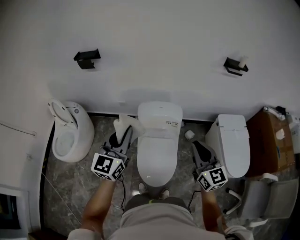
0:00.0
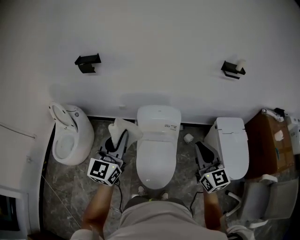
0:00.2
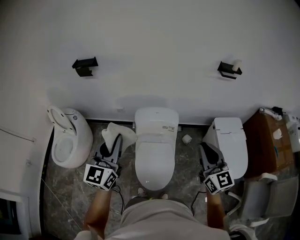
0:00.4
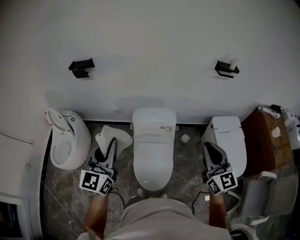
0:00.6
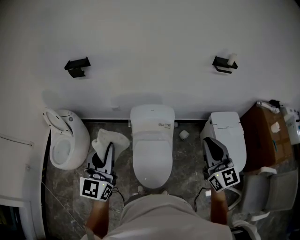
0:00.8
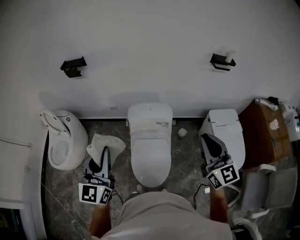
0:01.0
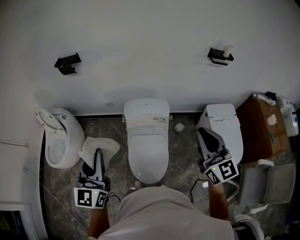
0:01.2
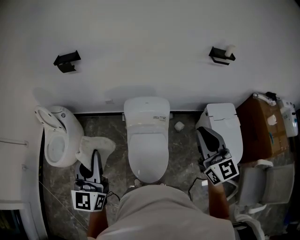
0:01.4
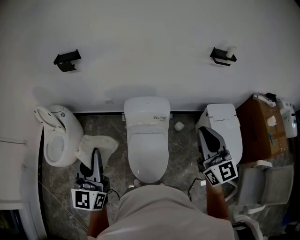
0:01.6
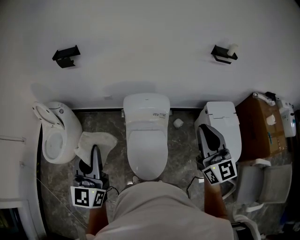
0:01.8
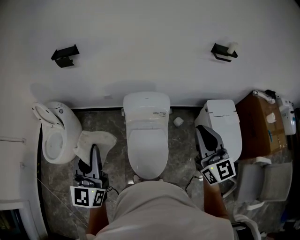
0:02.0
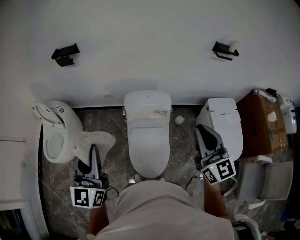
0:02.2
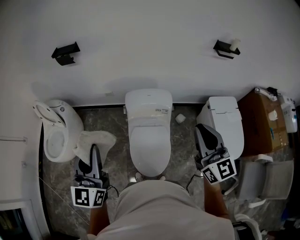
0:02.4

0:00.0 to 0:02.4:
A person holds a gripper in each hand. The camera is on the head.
0:00.0 to 0:01.2: The right gripper travels upward by about 10 cm; the left gripper heads backward, covering some 5 cm.
0:01.2 to 0:02.4: The grippers make only small movements.

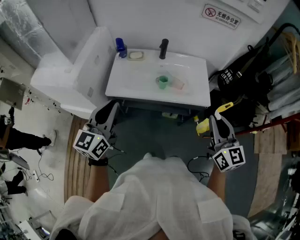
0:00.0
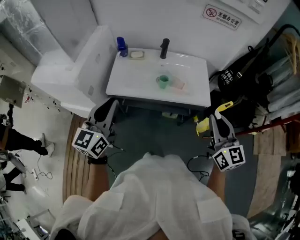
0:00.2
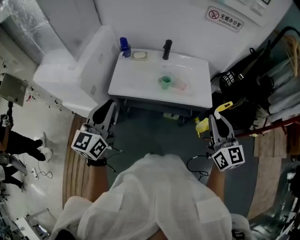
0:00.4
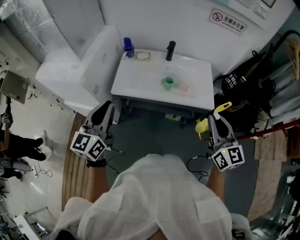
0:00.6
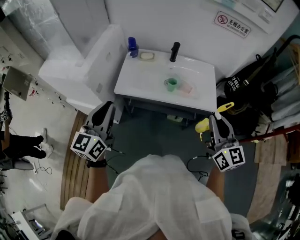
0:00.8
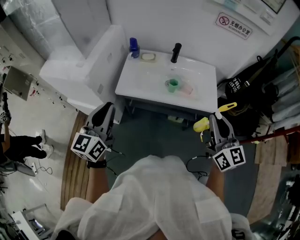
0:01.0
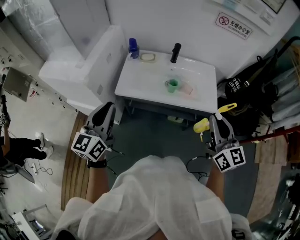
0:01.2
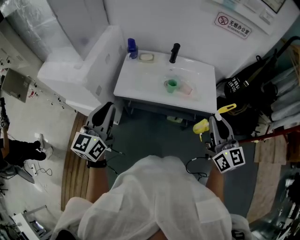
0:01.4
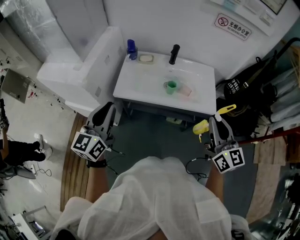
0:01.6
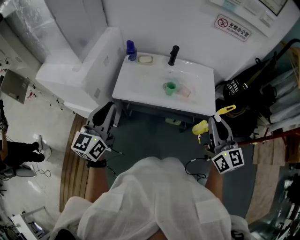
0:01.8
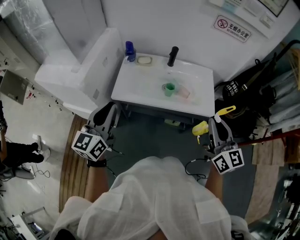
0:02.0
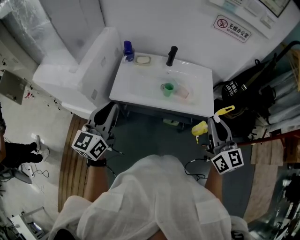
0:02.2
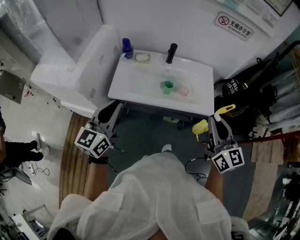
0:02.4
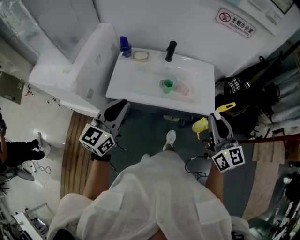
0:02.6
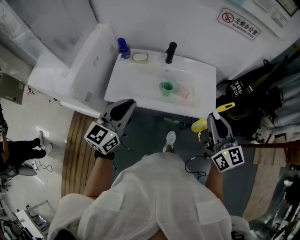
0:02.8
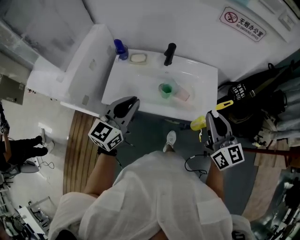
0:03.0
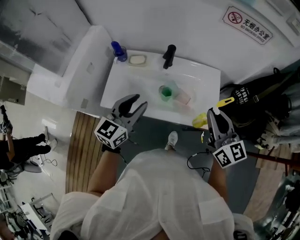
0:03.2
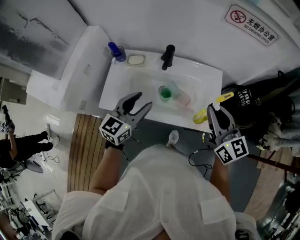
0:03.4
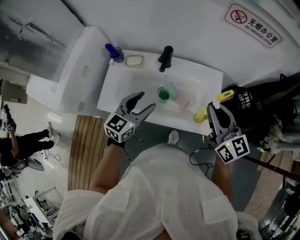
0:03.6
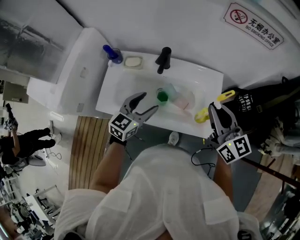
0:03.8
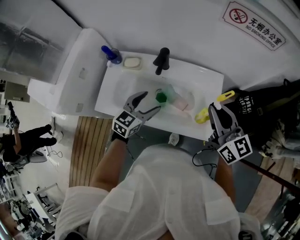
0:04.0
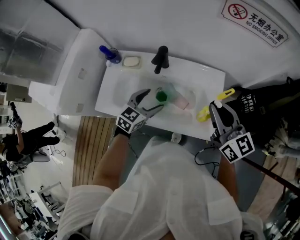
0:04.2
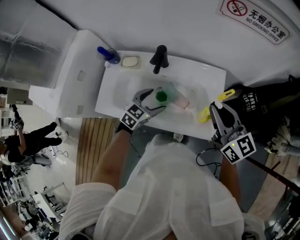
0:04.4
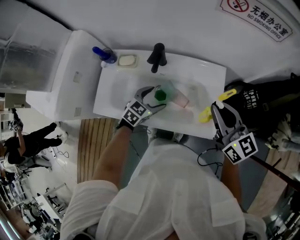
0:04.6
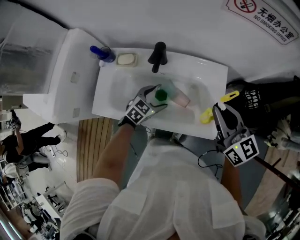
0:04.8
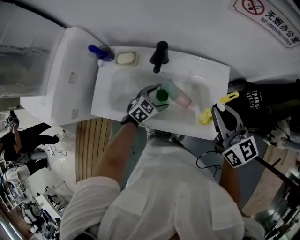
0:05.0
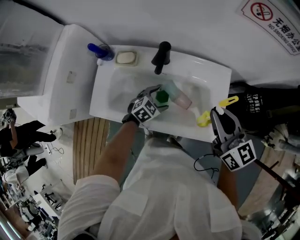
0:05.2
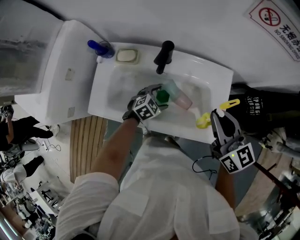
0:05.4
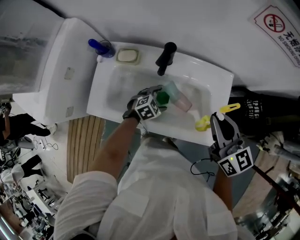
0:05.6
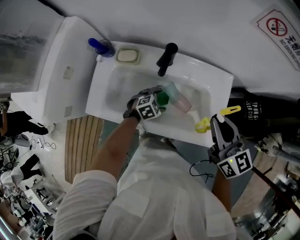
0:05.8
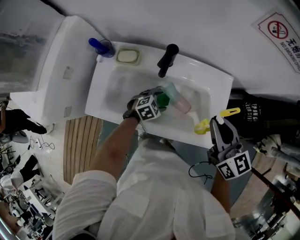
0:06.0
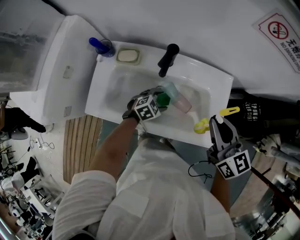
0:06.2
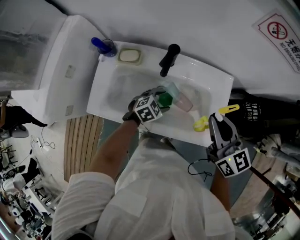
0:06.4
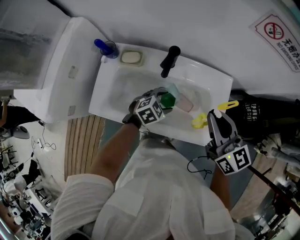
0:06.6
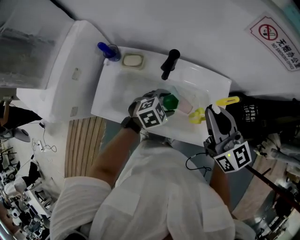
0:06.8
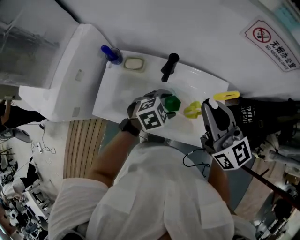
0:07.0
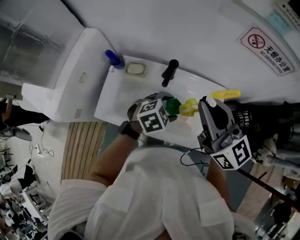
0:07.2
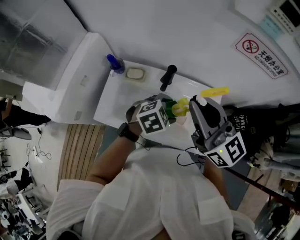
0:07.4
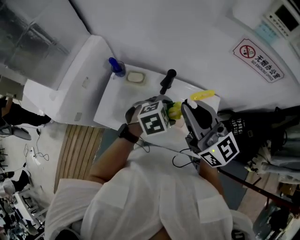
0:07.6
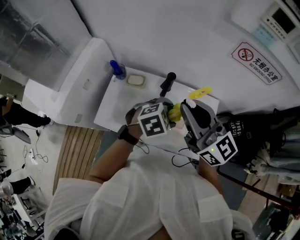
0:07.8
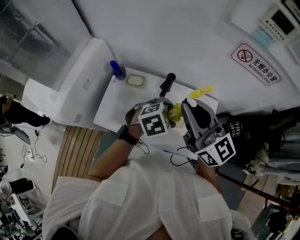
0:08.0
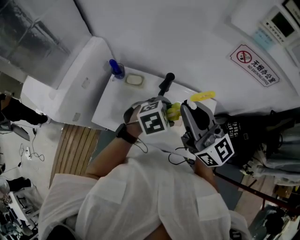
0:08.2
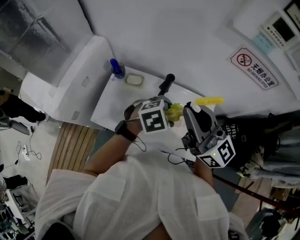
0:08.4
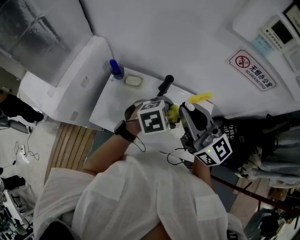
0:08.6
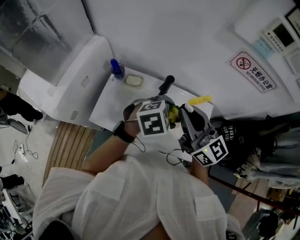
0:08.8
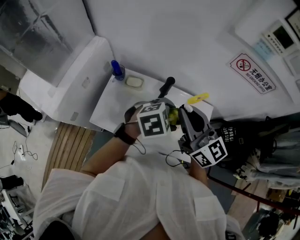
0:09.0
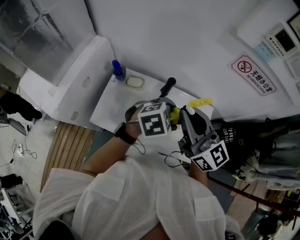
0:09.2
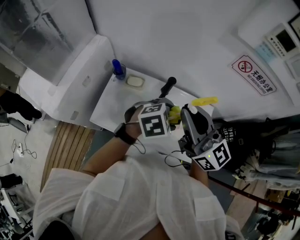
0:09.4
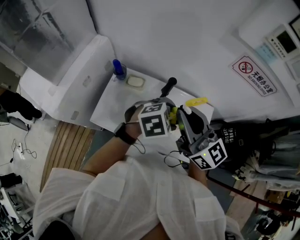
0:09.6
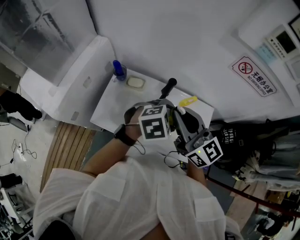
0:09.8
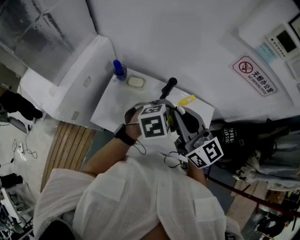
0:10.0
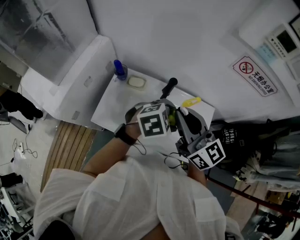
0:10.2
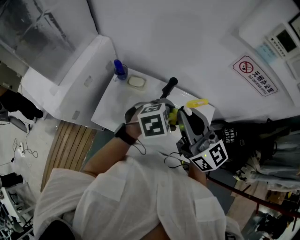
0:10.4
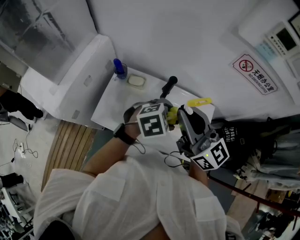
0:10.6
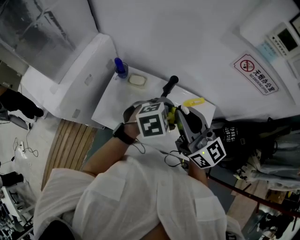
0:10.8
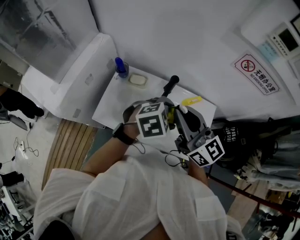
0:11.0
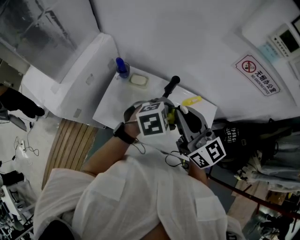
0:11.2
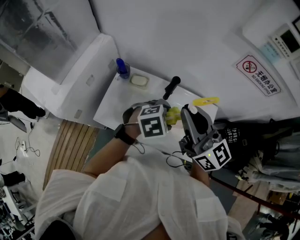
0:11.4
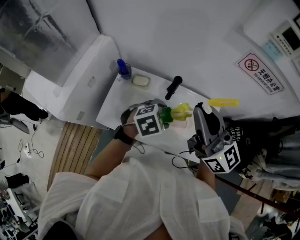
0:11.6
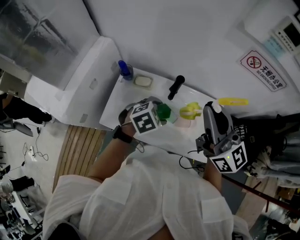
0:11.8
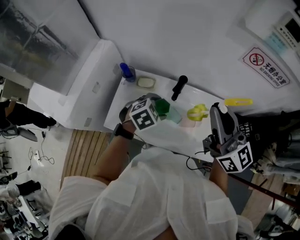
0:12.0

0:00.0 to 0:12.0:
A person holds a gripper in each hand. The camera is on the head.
0:00.0 to 0:01.6: The left gripper moves to the left, approximately 5 cm.
0:01.6 to 0:03.0: The right gripper is displaced forward by approximately 15 cm. Meanwhile the left gripper shifts roughly 20 cm forward and to the right.
0:03.0 to 0:04.4: The right gripper travels forward and to the right by some 15 cm. The left gripper shifts about 30 cm downward, forward and to the right, points its fingers roughly 30 degrees further downward, and opens its fingers.
0:04.4 to 0:06.0: The left gripper is displaced downward by approximately 15 cm, and changes its angle by roughly 30 degrees, while the right gripper ends up approximately 5 cm from where it was.
0:06.0 to 0:07.6: The left gripper shifts approximately 30 cm upward. The right gripper goes about 20 cm upward and to the left, and changes its angle by roughly 30 degrees.
0:07.6 to 0:09.0: The left gripper goes some 5 cm upward.
0:09.0 to 0:10.4: The grippers move only a little.
0:10.4 to 0:12.0: The left gripper shifts some 15 cm to the left and downward; the right gripper is displaced to the right by approximately 5 cm.

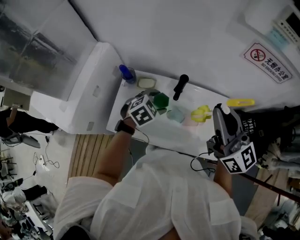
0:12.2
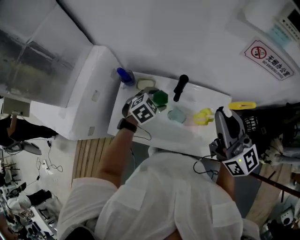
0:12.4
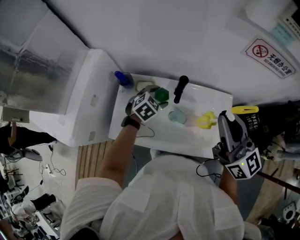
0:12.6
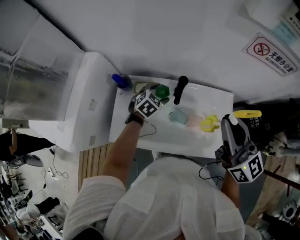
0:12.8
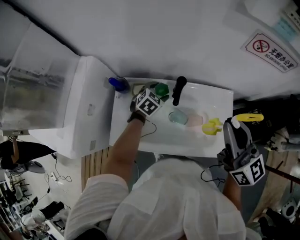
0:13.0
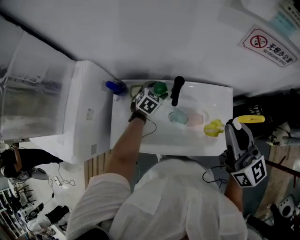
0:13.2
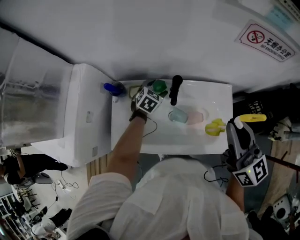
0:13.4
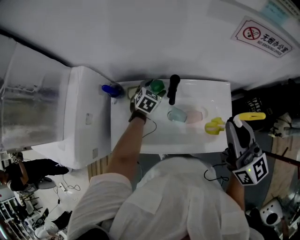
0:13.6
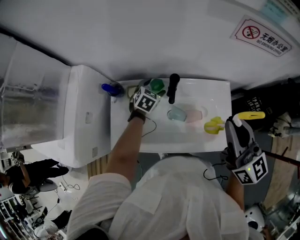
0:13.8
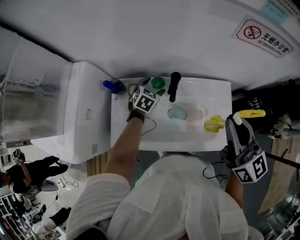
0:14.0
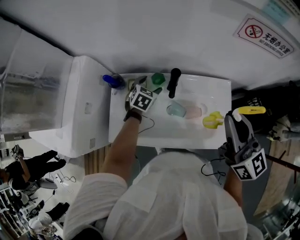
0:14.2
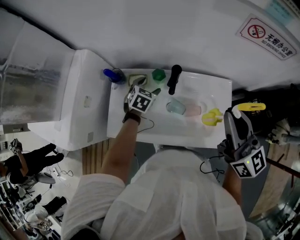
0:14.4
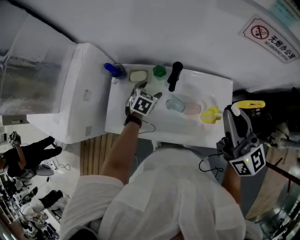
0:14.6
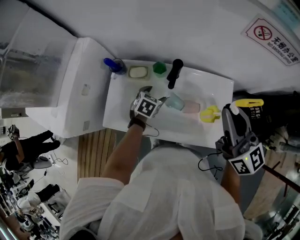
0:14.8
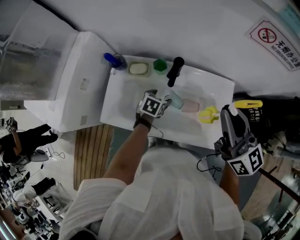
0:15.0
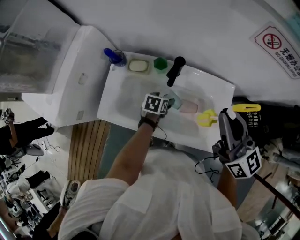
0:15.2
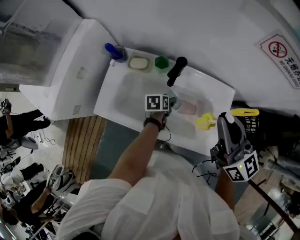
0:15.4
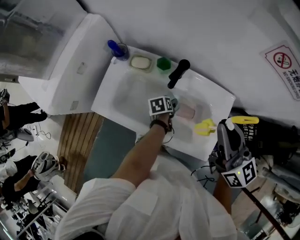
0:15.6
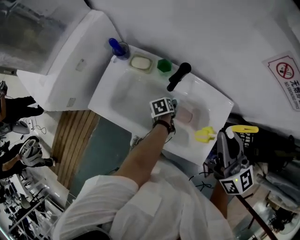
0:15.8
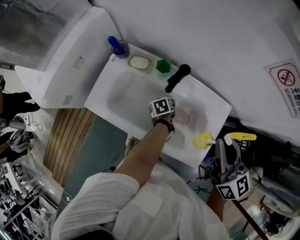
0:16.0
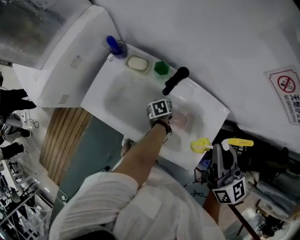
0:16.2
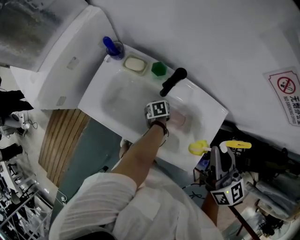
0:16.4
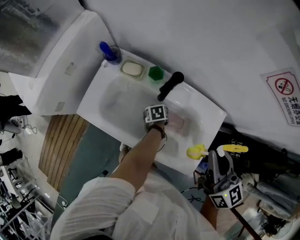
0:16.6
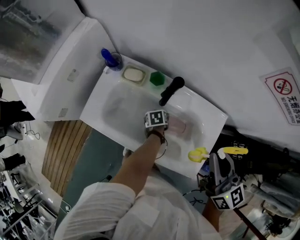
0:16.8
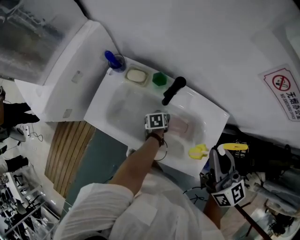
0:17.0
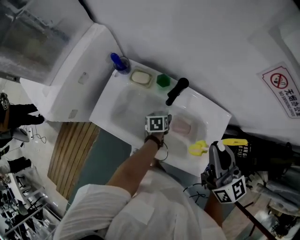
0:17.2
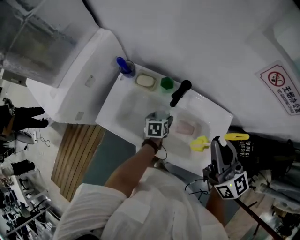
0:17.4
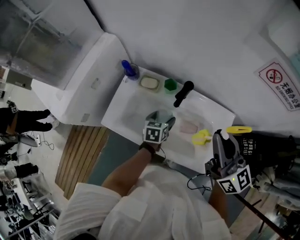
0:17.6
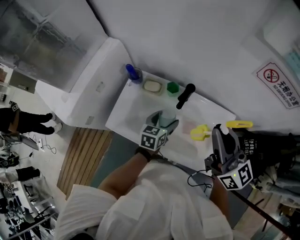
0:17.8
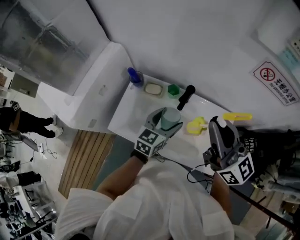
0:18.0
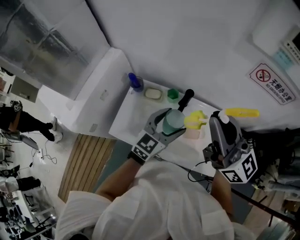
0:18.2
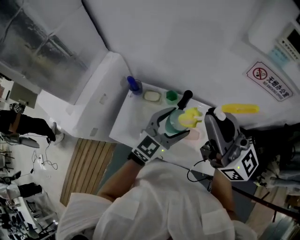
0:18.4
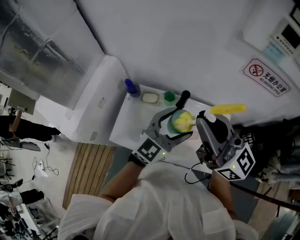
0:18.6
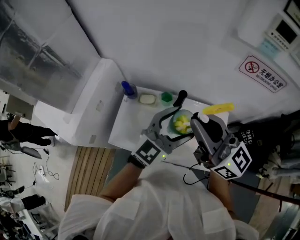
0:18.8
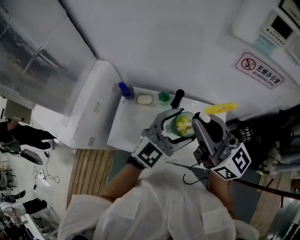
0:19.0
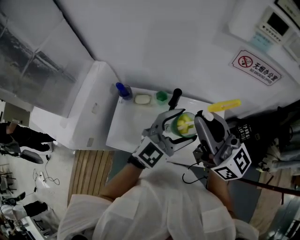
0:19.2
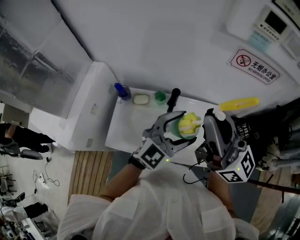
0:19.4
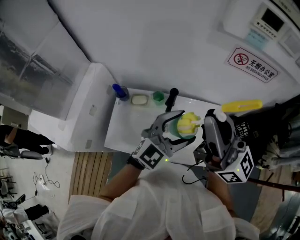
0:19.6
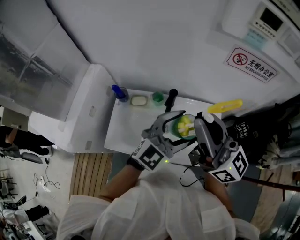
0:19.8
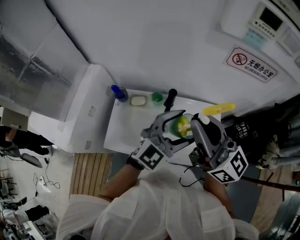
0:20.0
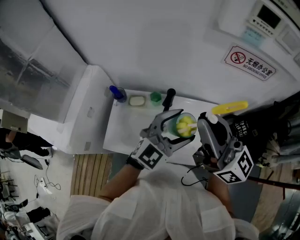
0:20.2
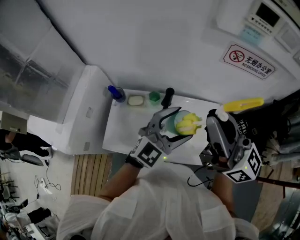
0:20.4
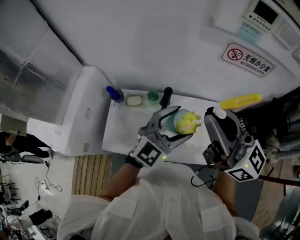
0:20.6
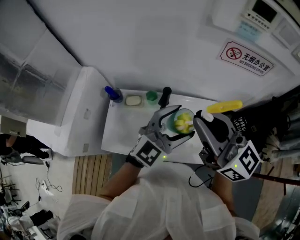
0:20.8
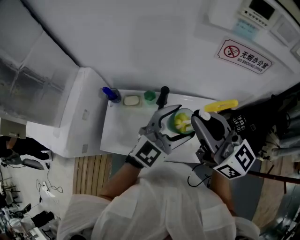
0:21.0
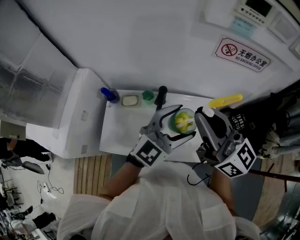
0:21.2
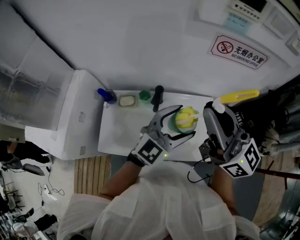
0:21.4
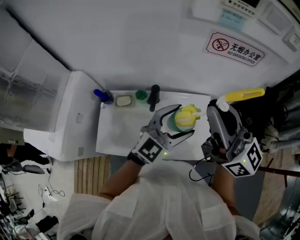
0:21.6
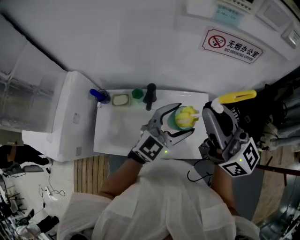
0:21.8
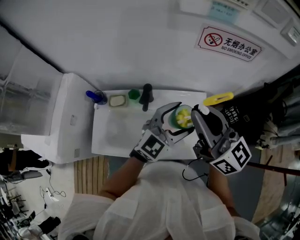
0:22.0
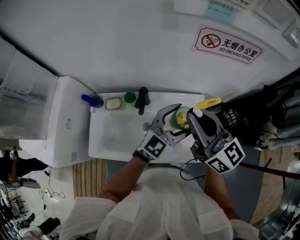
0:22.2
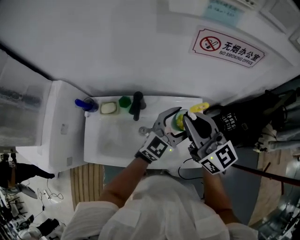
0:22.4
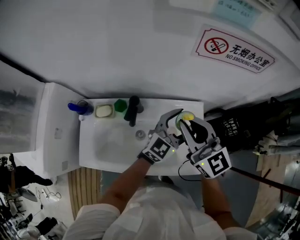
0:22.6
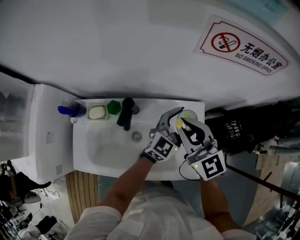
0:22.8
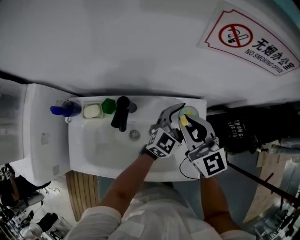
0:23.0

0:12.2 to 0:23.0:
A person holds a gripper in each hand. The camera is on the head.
0:12.2 to 0:13.8: The left gripper travels forward and downward by about 15 cm, while the right gripper shifts by some 5 cm.
0:13.8 to 0:15.2: The left gripper goes approximately 15 cm backward and downward, and rolls counterclockwise, seen from behind, by roughly 40 degrees.
0:15.2 to 0:16.8: The left gripper shifts about 10 cm downward, and rotates approximately 40 degrees; the right gripper ends up roughly 5 cm from where it was.
0:16.8 to 0:18.4: The right gripper is displaced upward and to the left by roughly 25 cm, and rotates roughly 30 degrees. Meanwhile the left gripper shifts some 40 cm upward, and angles its fingers upward, by approximately 60 degrees.
0:18.4 to 0:20.0: The left gripper travels to the right and upward by roughly 10 cm, and swivels roughly 20 degrees.
0:20.0 to 0:21.4: The right gripper shifts roughly 5 cm to the right.
0:21.4 to 0:23.0: The left gripper travels downward, forward and to the right by some 30 cm. The right gripper heads downward and forward, covering approximately 30 cm, and turns by approximately 30 degrees.
